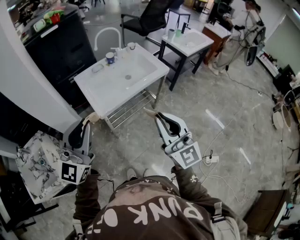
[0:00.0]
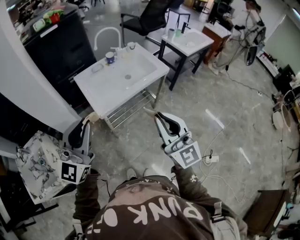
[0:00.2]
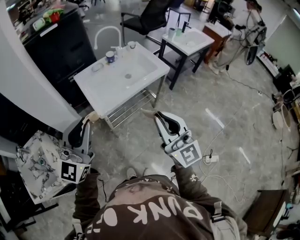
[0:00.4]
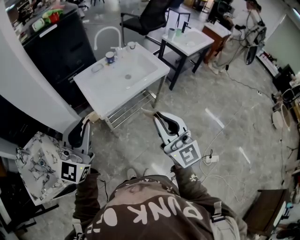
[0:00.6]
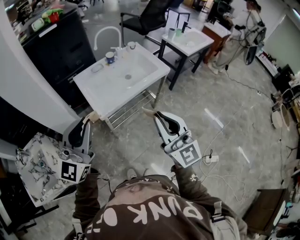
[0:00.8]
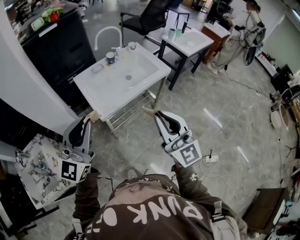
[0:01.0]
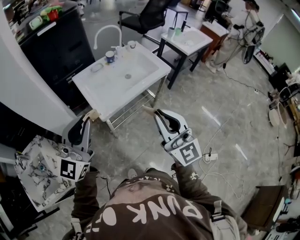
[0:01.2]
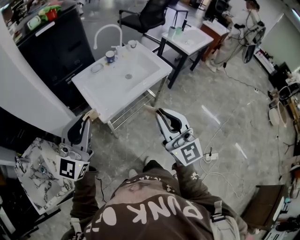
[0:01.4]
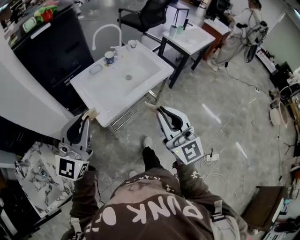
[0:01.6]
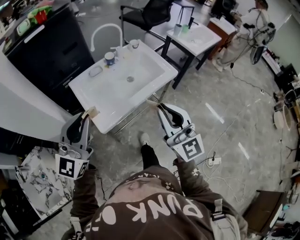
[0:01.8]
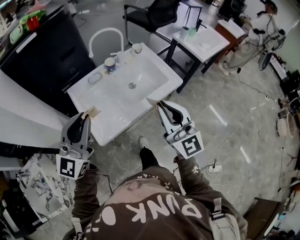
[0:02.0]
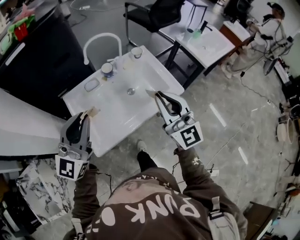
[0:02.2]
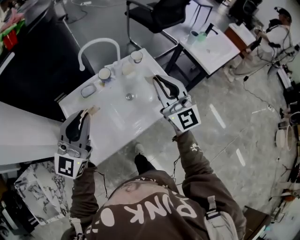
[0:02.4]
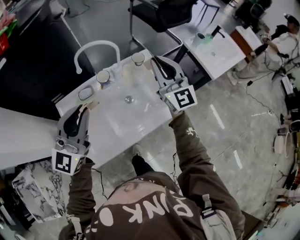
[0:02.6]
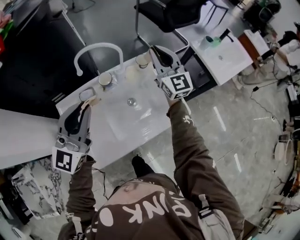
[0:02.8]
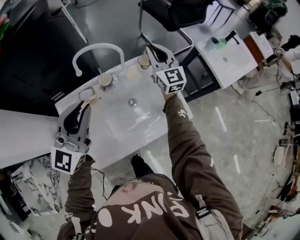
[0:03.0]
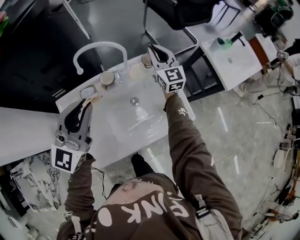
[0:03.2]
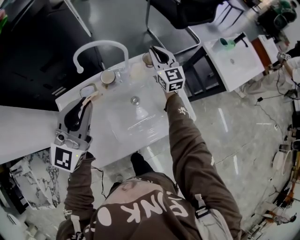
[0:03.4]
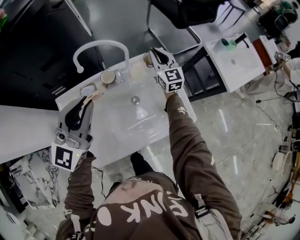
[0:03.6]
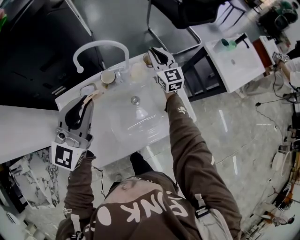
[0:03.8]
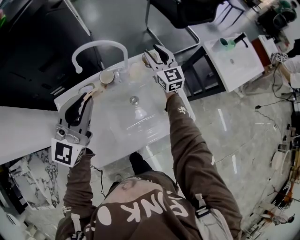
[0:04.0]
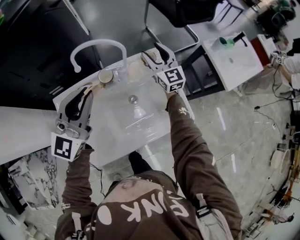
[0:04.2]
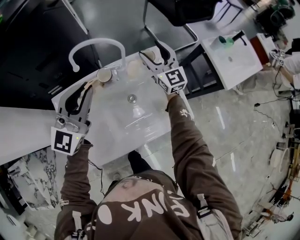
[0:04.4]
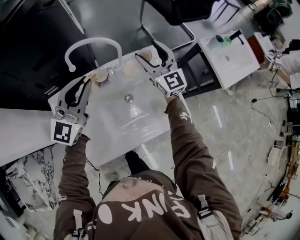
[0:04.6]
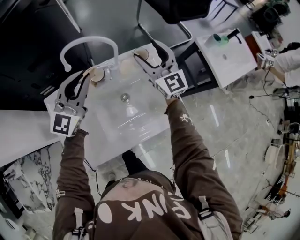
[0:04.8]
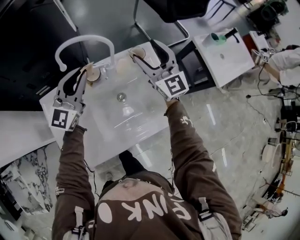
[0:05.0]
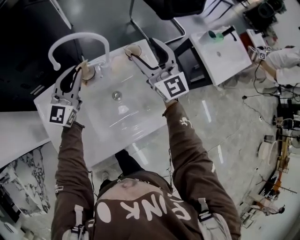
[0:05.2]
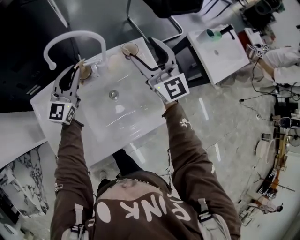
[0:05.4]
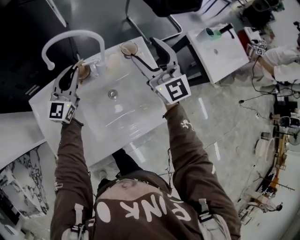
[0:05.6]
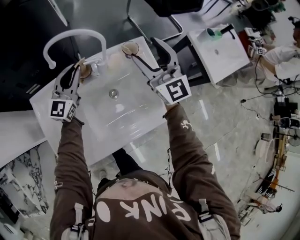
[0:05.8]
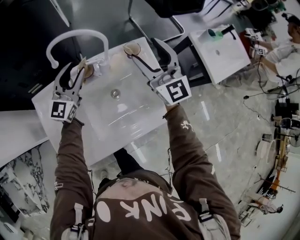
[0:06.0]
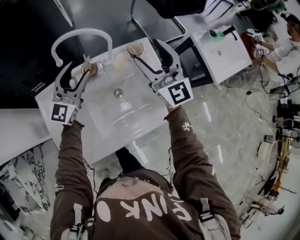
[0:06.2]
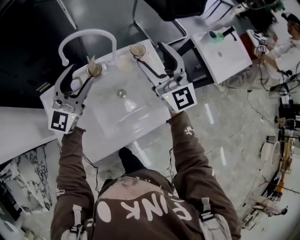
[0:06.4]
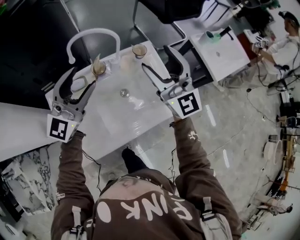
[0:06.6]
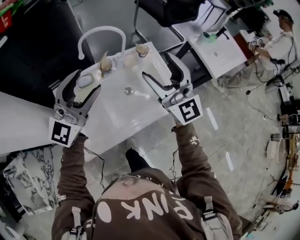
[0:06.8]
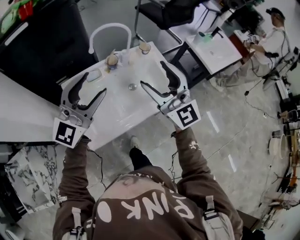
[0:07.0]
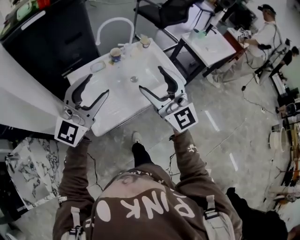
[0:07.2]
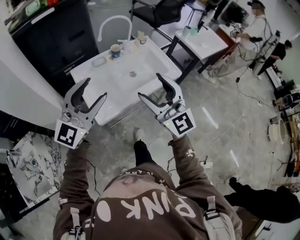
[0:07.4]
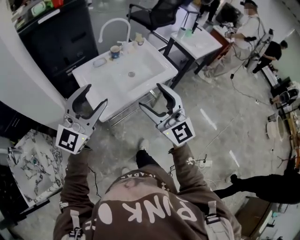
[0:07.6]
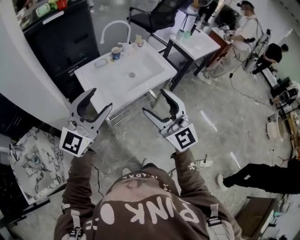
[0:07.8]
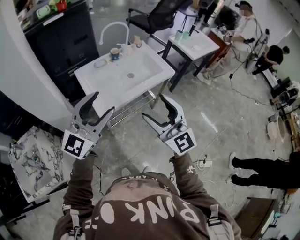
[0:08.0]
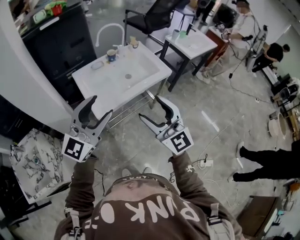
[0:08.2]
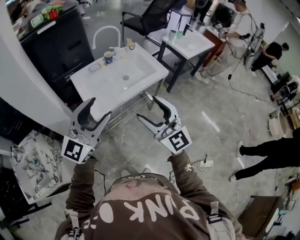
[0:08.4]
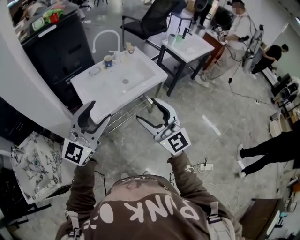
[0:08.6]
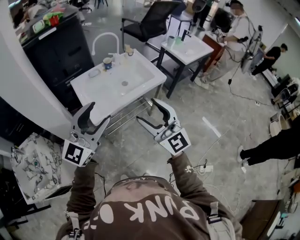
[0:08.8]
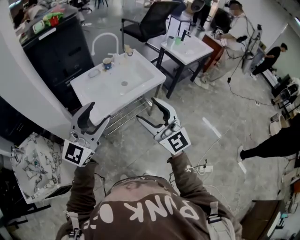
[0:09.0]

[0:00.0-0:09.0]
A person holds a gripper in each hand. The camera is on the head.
0:00.0 to 0:01.6: Both grippers travel together forward, some 10 cm.
0:01.6 to 0:03.0: The pair of grippers is taken forward, approximately 60 cm.
0:03.0 to 0:04.4: The left gripper travels forward by approximately 5 cm; the right gripper opens.
0:04.4 to 0:06.0: The right gripper heads backward and upward, covering some 10 cm. Meanwhile the left gripper shifts some 15 cm downward and forward, and opens up.
0:06.0 to 0:07.6: The pair of grippers is taken backward, approximately 50 cm. The left gripper moves upward, roughly 20 cm, turns by about 20 degrees, and opens up.
0:07.6 to 0:09.0: Both grippers move backward and to the right, about 10 cm.

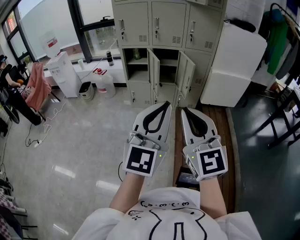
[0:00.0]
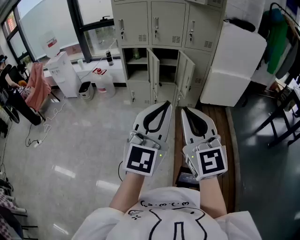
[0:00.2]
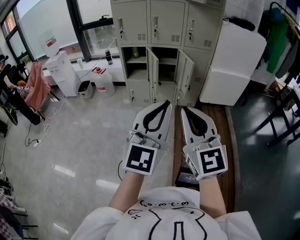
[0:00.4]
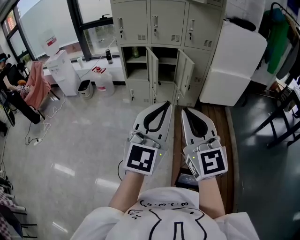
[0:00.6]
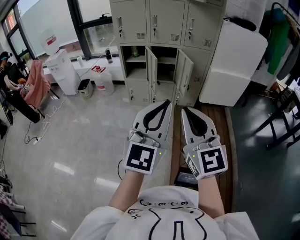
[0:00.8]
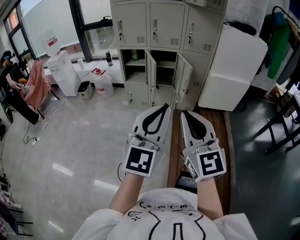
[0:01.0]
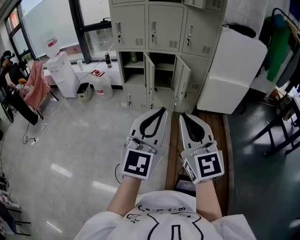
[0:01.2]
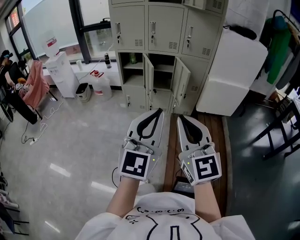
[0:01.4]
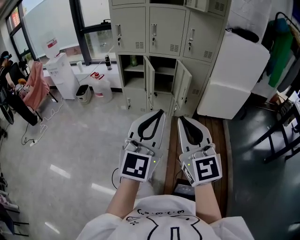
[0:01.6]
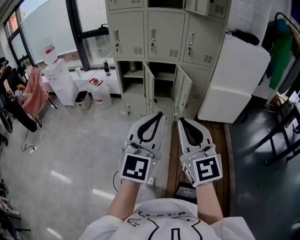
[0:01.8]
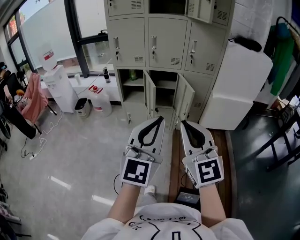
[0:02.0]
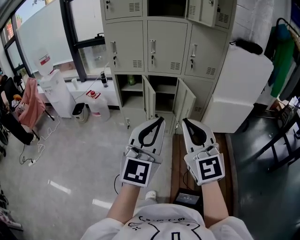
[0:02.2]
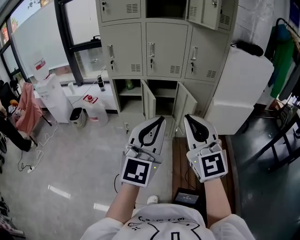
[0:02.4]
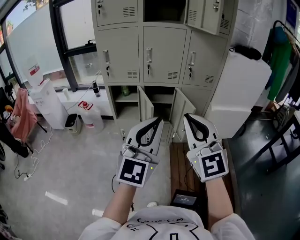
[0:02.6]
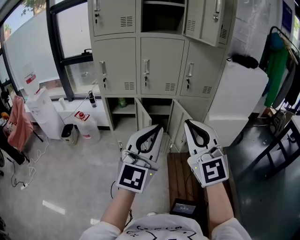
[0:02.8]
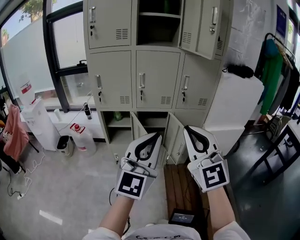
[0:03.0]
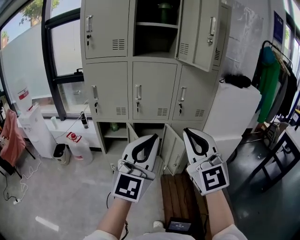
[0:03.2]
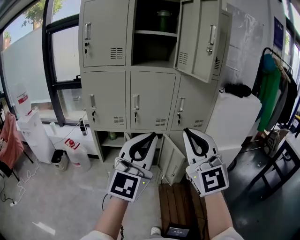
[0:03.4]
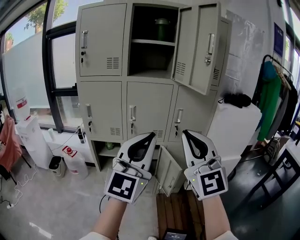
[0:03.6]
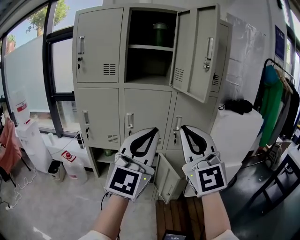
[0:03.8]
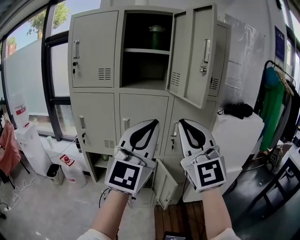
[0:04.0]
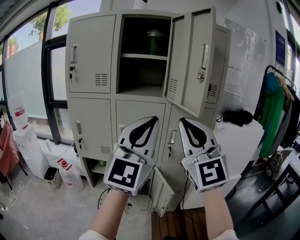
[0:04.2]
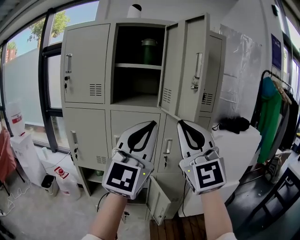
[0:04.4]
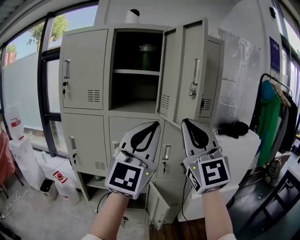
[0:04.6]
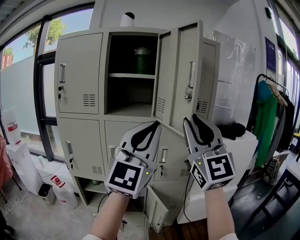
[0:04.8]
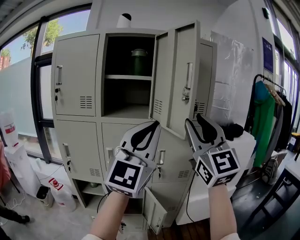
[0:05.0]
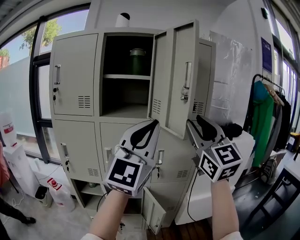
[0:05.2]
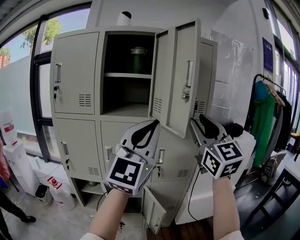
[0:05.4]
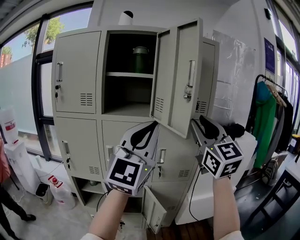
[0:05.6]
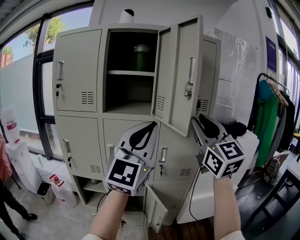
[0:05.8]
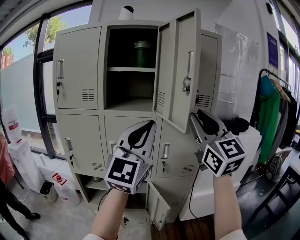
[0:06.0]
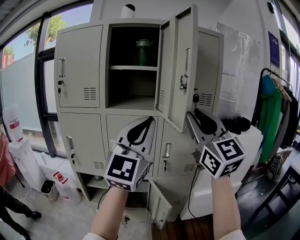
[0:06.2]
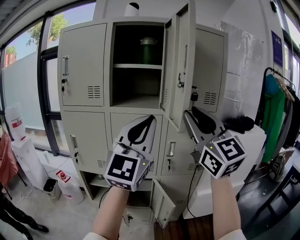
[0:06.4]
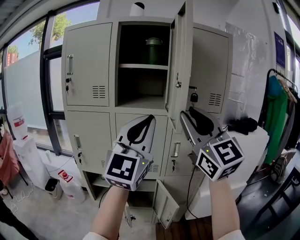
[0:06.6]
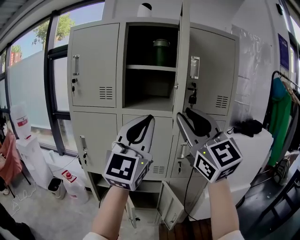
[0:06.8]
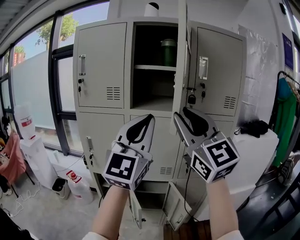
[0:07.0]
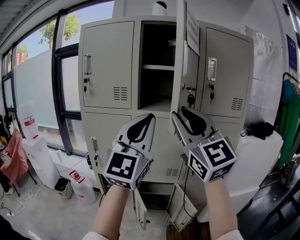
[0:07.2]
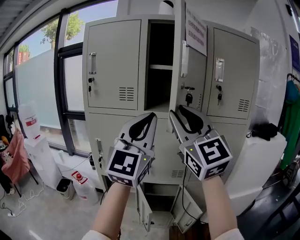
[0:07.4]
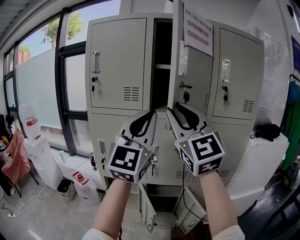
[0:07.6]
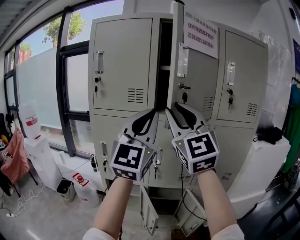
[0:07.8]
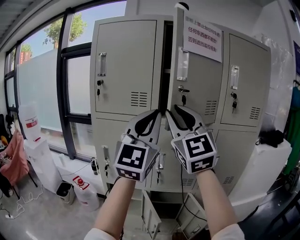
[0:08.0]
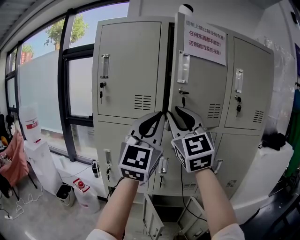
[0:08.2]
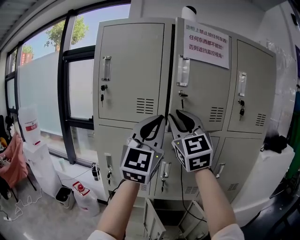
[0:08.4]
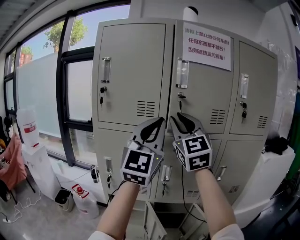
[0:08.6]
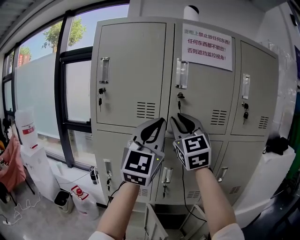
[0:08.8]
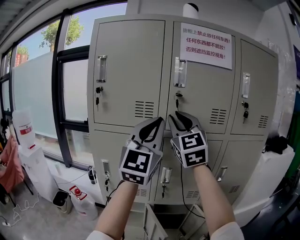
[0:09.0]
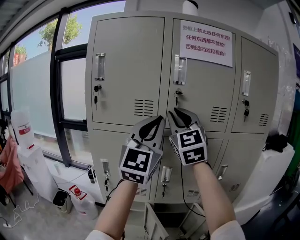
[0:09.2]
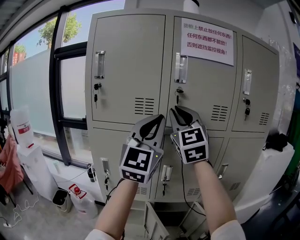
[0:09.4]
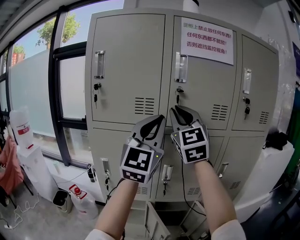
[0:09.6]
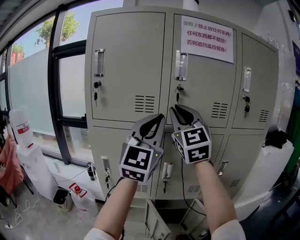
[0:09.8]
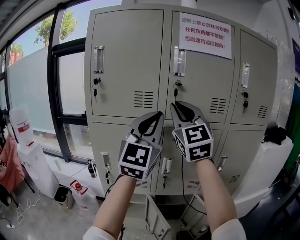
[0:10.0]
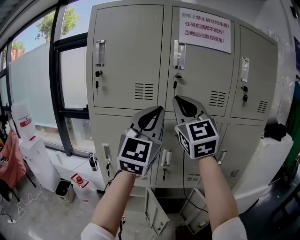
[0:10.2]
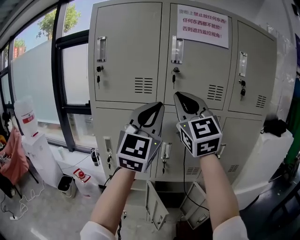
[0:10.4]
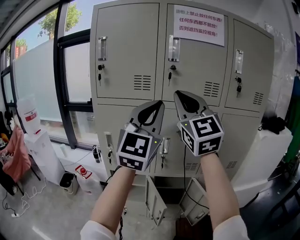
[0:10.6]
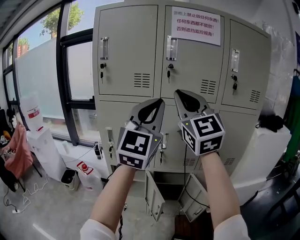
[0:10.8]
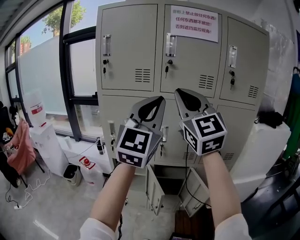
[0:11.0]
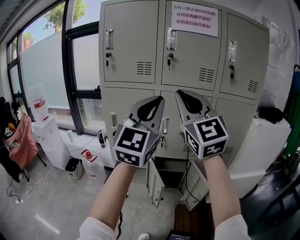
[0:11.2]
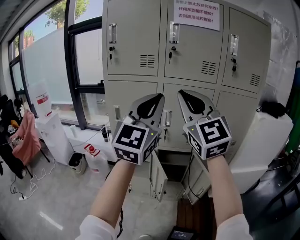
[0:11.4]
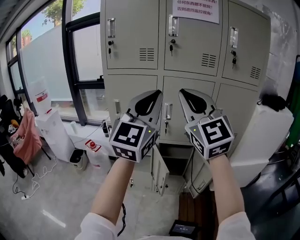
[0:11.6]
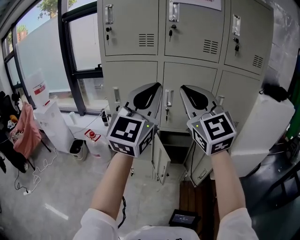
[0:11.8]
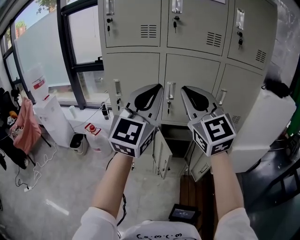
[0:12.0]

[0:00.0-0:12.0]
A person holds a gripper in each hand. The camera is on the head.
0:00.0 to 0:01.6: The grippers both shift forward by about 5 cm.
0:01.6 to 0:03.0: Both grippers move forward, some 25 cm.
0:03.0 to 0:04.4: The left gripper shifts approximately 30 cm upward, forward and to the right. Meanwhile the right gripper travels forward, upward and to the right by some 30 cm.
0:04.4 to 0:06.0: The left gripper is displaced forward by some 5 cm. The right gripper shifts some 10 cm to the right and forward.
0:06.0 to 0:07.6: The two grippers go some 20 cm to the left.
0:07.6 to 0:09.0: The right gripper is displaced forward by about 15 cm; the left gripper heads forward, covering approximately 10 cm.
0:09.0 to 0:10.4: The right gripper moves backward, some 10 cm.
0:10.4 to 0:12.0: Both grippers travel together backward and downward, roughly 20 cm.

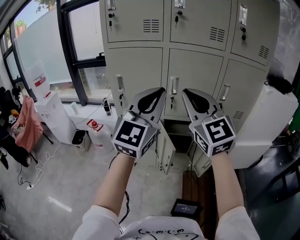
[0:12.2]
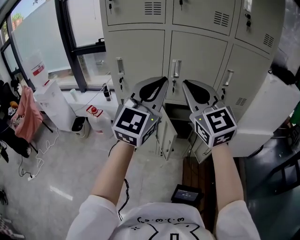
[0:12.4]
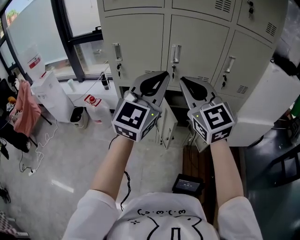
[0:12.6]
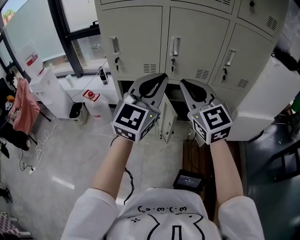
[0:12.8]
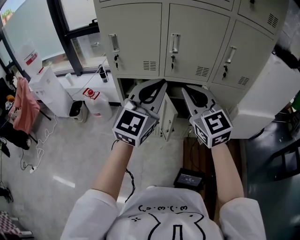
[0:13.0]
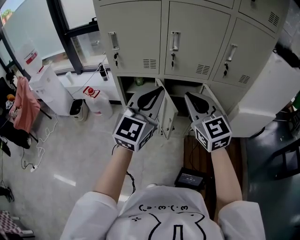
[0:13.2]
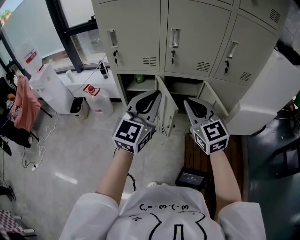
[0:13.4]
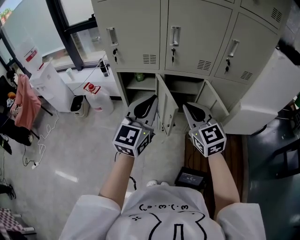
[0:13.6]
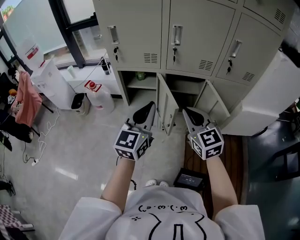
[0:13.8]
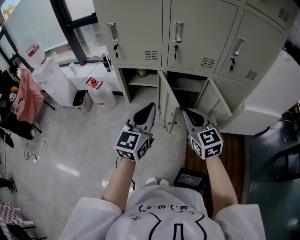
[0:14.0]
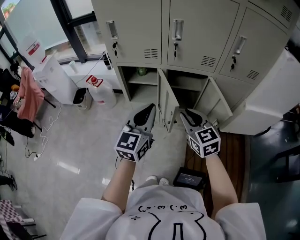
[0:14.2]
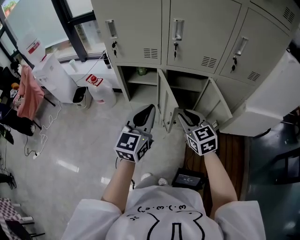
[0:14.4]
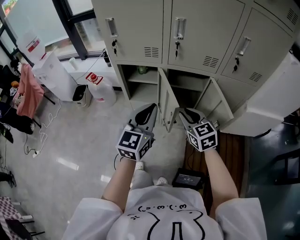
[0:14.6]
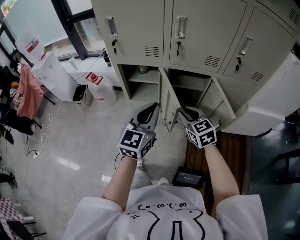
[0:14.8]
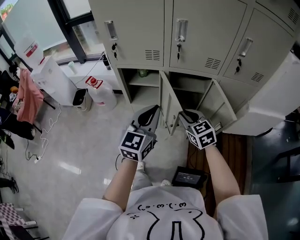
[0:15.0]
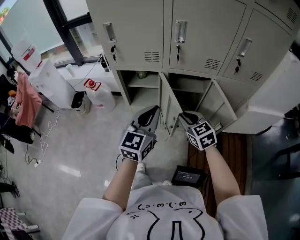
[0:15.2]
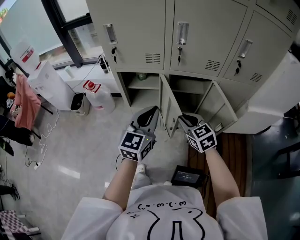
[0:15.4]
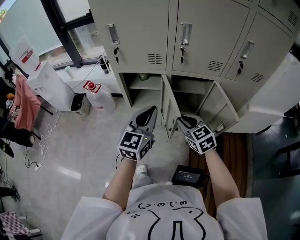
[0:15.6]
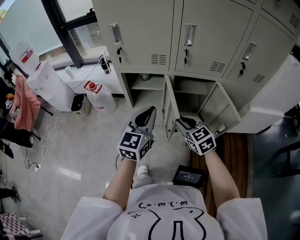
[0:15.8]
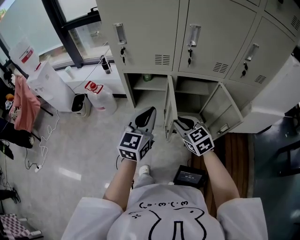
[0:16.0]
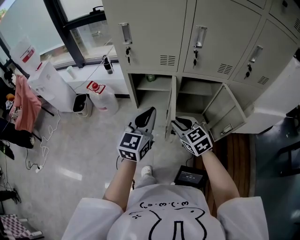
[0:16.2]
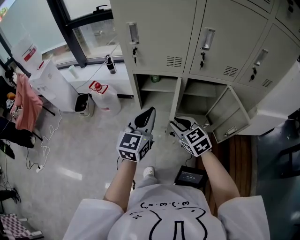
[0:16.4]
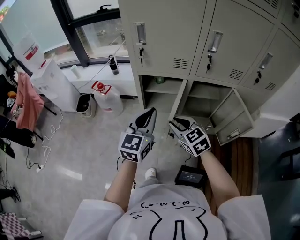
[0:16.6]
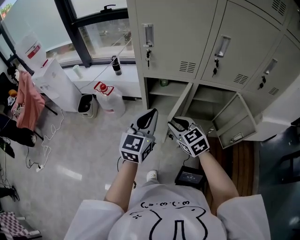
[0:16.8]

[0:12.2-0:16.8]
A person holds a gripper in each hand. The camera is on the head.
0:12.2 to 0:13.8: The grippers both shift downward by approximately 25 cm. The right gripper swivels about 30 degrees, while the left gripper changes its angle by roughly 30 degrees.
0:13.8 to 0:15.2: The right gripper shifts some 15 cm downward and forward; the left gripper moves roughly 5 cm.
0:15.2 to 0:16.8: The right gripper heads to the left, covering about 20 cm, while the left gripper goes some 15 cm to the left and forward.
